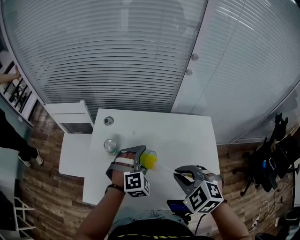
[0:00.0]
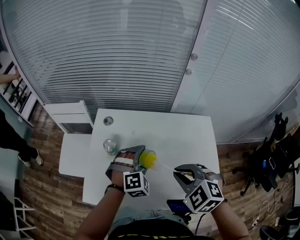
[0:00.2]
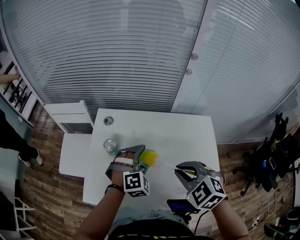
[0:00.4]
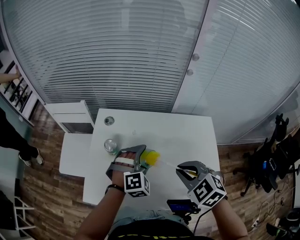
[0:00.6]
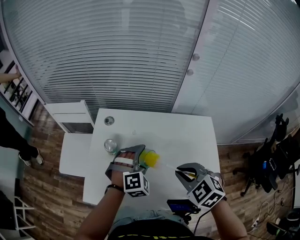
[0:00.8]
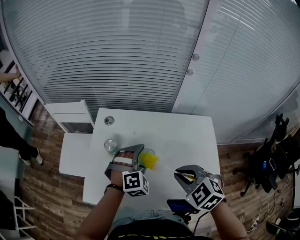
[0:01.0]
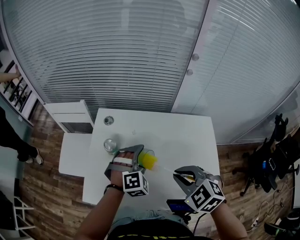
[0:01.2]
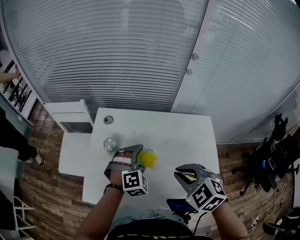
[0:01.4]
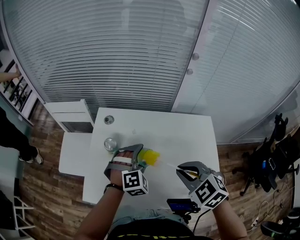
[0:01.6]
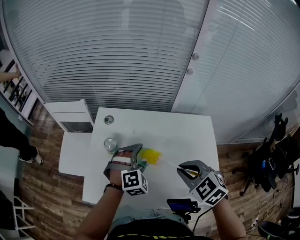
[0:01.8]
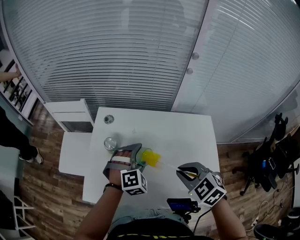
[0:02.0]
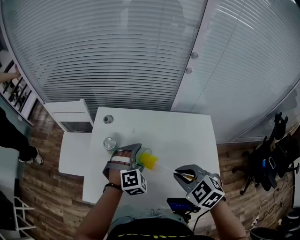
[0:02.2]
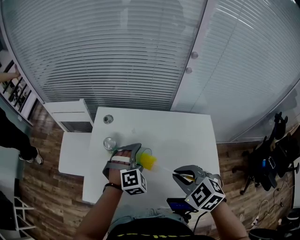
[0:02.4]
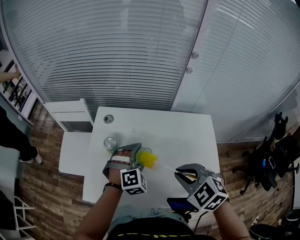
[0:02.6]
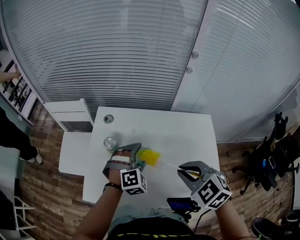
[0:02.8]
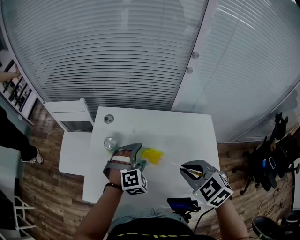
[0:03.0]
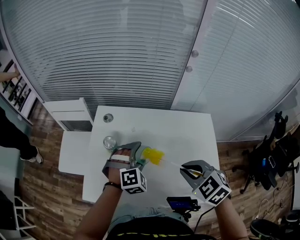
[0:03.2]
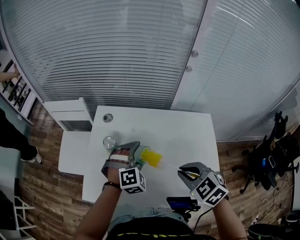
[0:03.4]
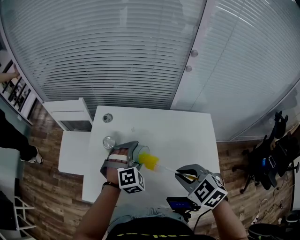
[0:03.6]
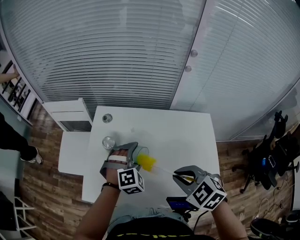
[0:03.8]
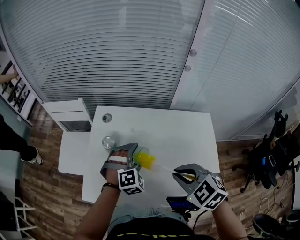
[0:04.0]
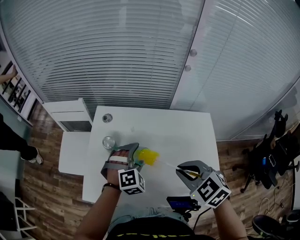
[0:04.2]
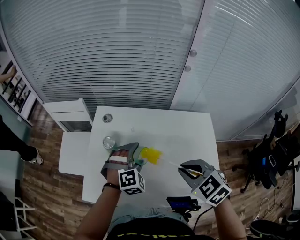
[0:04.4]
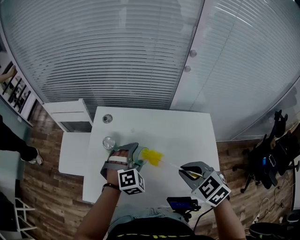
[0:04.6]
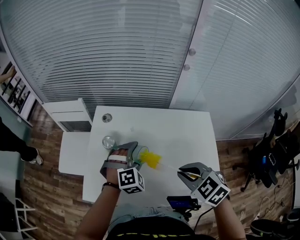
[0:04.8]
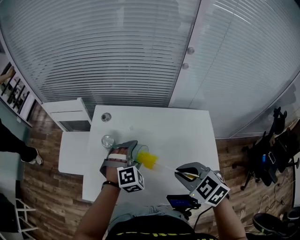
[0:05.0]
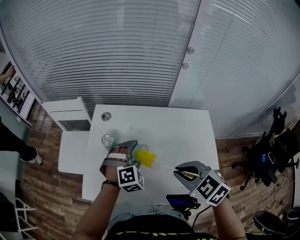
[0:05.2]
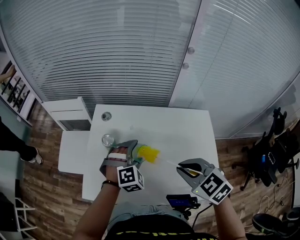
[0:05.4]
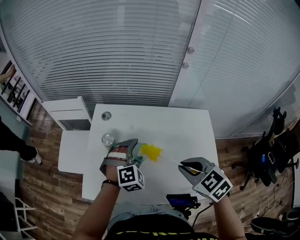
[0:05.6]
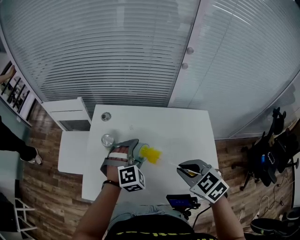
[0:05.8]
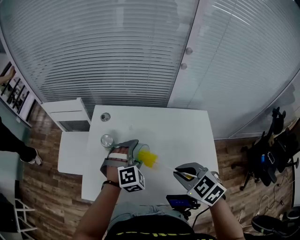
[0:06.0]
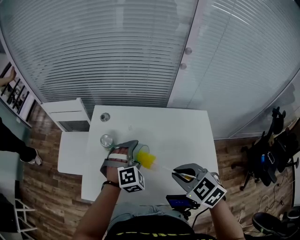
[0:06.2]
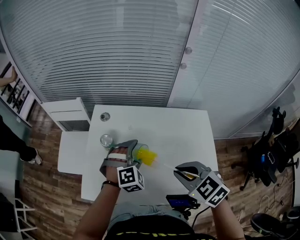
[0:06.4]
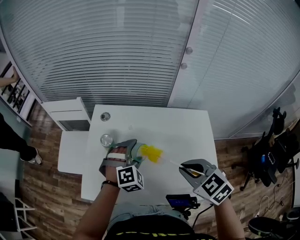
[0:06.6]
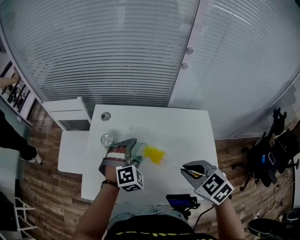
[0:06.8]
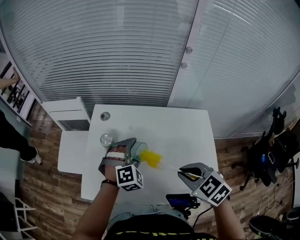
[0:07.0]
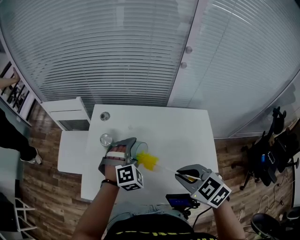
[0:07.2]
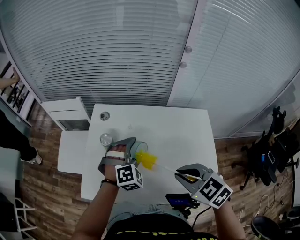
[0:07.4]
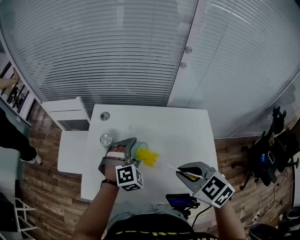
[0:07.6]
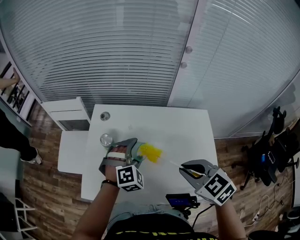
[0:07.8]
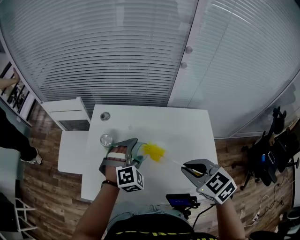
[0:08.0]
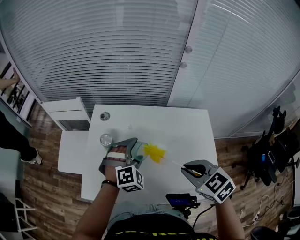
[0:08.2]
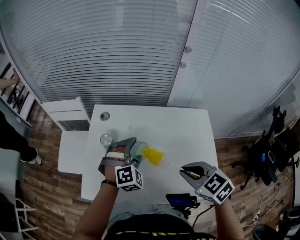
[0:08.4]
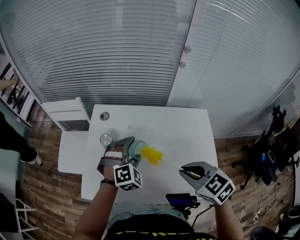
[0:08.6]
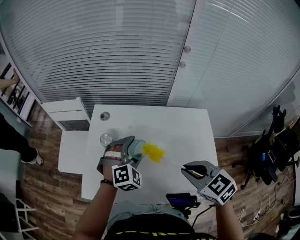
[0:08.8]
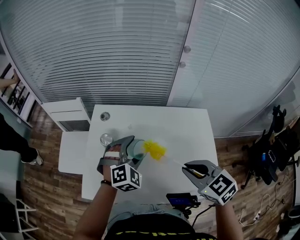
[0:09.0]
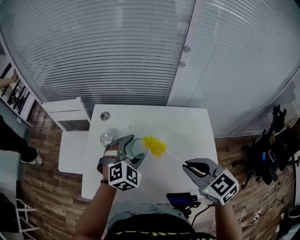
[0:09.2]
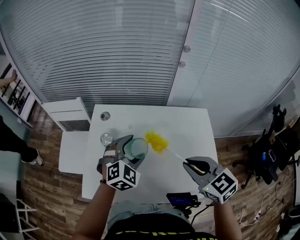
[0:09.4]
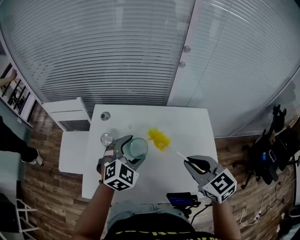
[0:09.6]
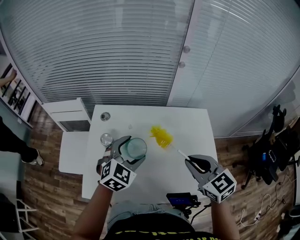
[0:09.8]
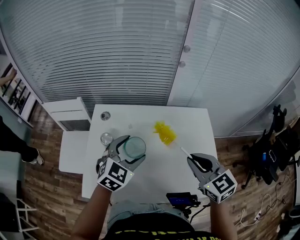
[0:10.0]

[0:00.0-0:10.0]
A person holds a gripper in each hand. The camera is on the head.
0:00.0 to 0:04.2: The grippers stay close to where they were, moving slightly.
0:04.2 to 0:08.6: The grippers stay close to where they were, moving slightly.
0:08.6 to 0:10.0: The left gripper heads upward, covering some 5 cm, and swivels approximately 40 degrees; the right gripper moves about 5 cm, and rotates some 20 degrees.

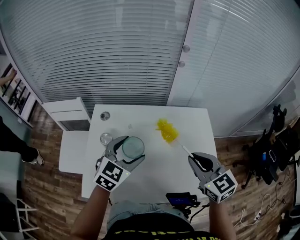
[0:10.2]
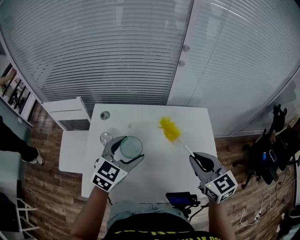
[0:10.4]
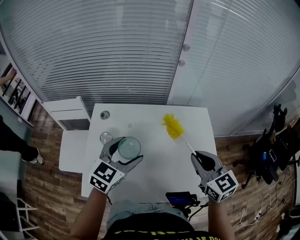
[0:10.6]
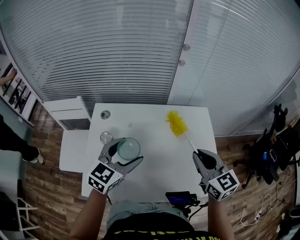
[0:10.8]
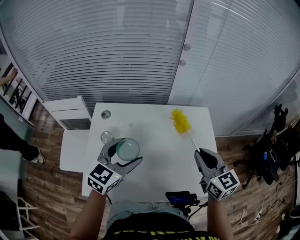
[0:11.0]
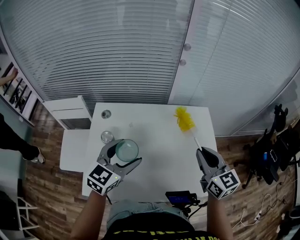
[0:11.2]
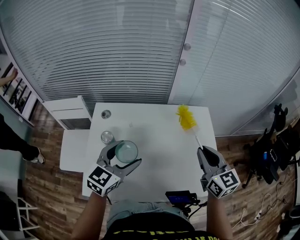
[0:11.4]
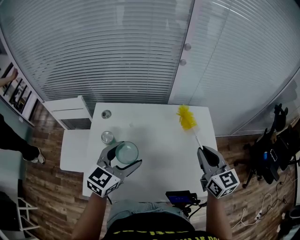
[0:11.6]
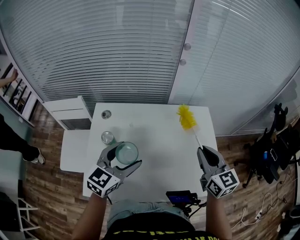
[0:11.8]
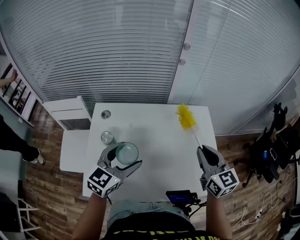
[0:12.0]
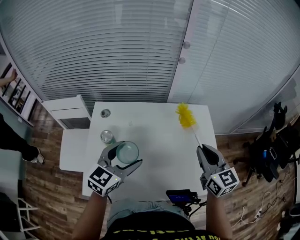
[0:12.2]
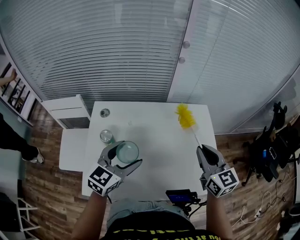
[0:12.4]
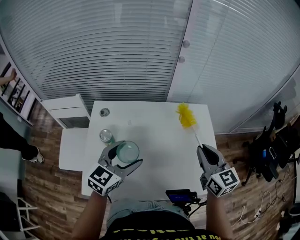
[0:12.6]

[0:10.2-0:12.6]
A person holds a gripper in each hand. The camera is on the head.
0:10.2 to 0:11.4: The grippers move only a little.
0:11.4 to 0:12.6: The two grippers keep their place.

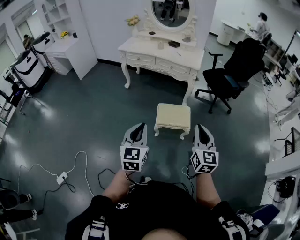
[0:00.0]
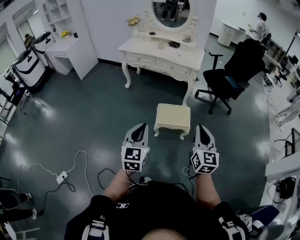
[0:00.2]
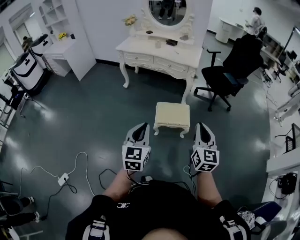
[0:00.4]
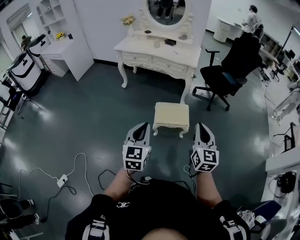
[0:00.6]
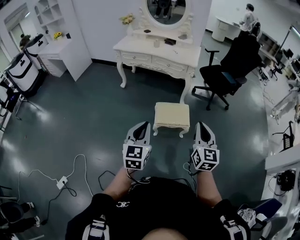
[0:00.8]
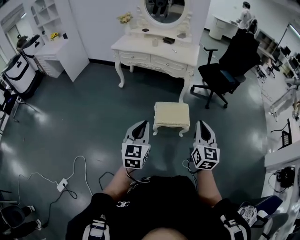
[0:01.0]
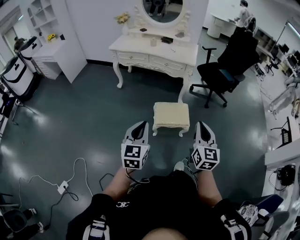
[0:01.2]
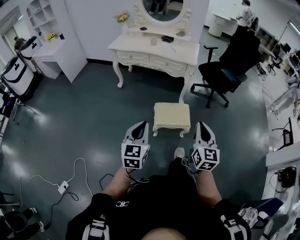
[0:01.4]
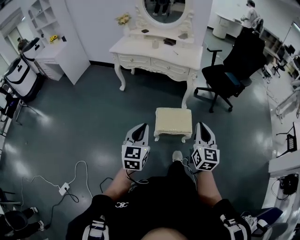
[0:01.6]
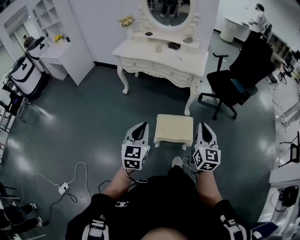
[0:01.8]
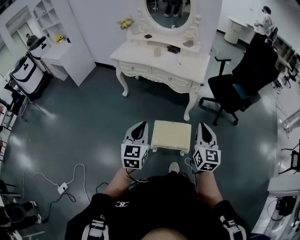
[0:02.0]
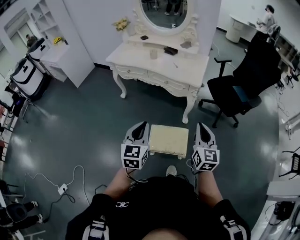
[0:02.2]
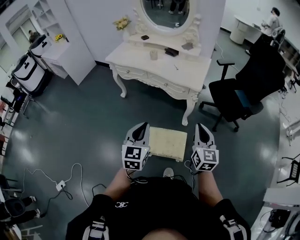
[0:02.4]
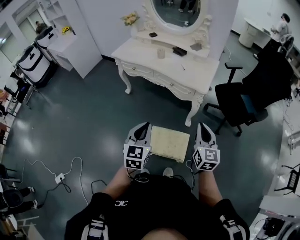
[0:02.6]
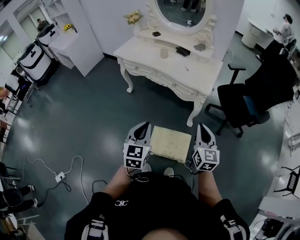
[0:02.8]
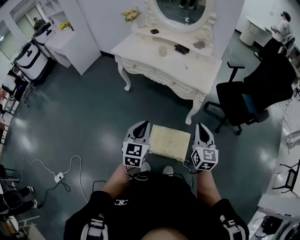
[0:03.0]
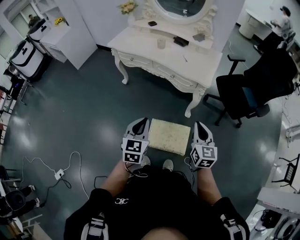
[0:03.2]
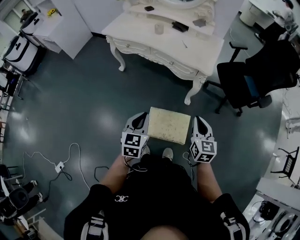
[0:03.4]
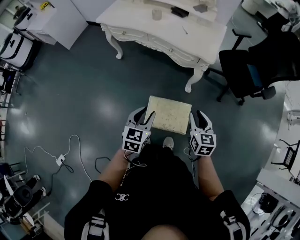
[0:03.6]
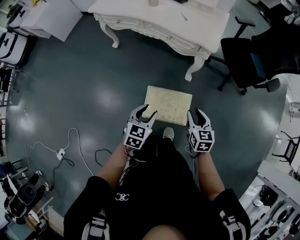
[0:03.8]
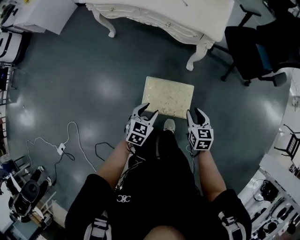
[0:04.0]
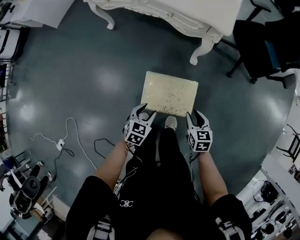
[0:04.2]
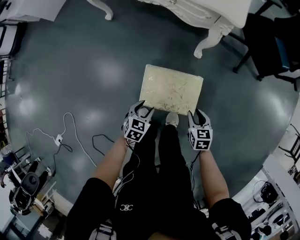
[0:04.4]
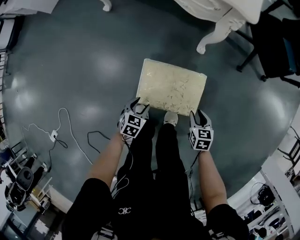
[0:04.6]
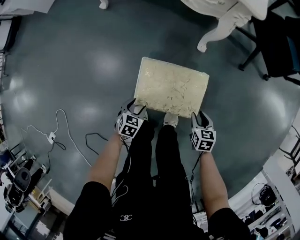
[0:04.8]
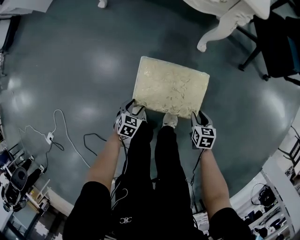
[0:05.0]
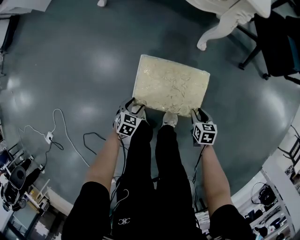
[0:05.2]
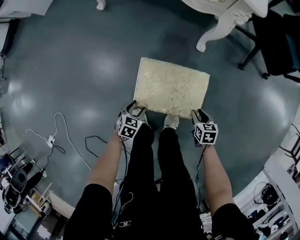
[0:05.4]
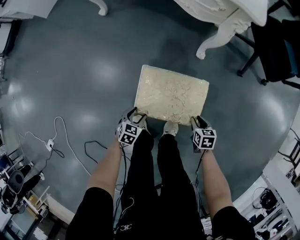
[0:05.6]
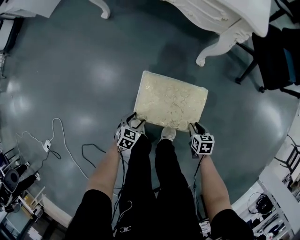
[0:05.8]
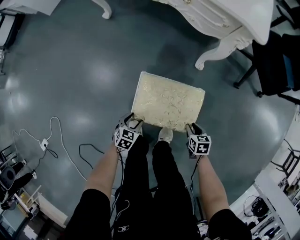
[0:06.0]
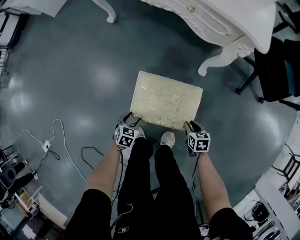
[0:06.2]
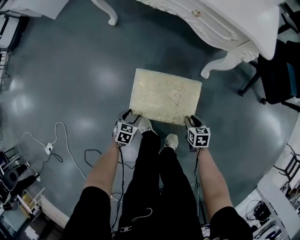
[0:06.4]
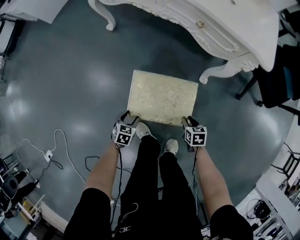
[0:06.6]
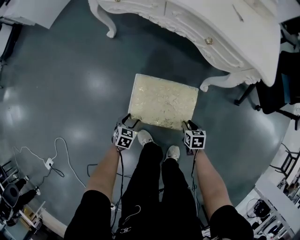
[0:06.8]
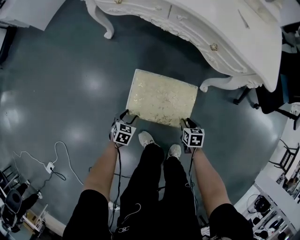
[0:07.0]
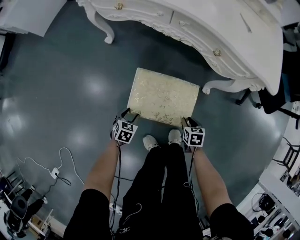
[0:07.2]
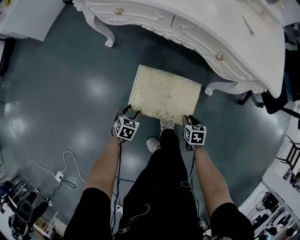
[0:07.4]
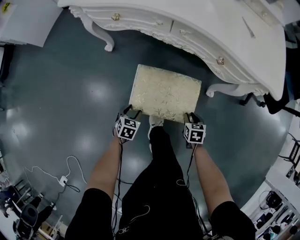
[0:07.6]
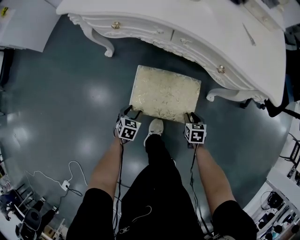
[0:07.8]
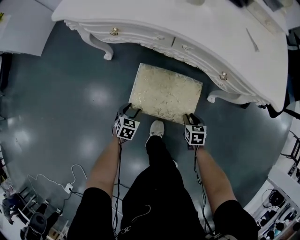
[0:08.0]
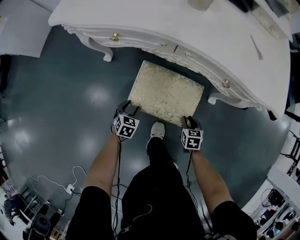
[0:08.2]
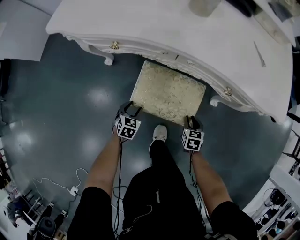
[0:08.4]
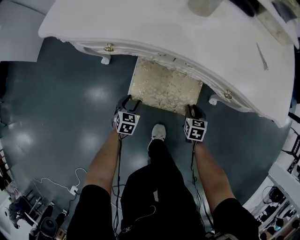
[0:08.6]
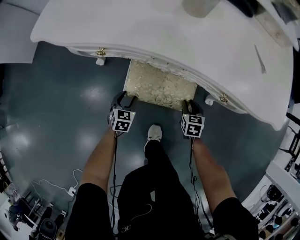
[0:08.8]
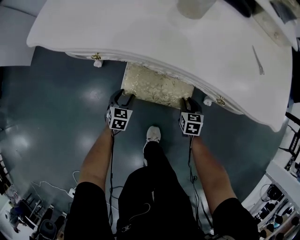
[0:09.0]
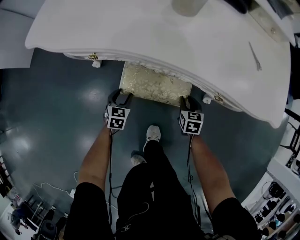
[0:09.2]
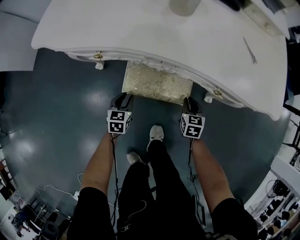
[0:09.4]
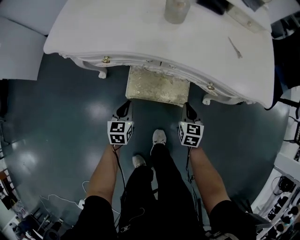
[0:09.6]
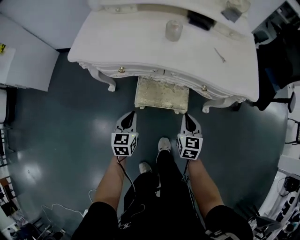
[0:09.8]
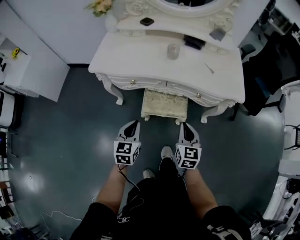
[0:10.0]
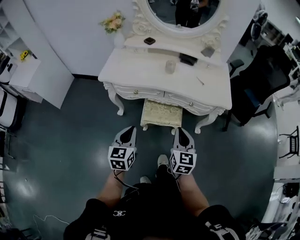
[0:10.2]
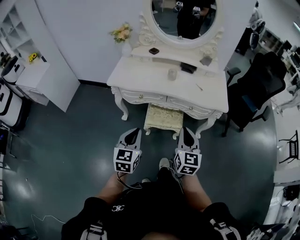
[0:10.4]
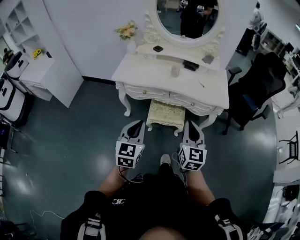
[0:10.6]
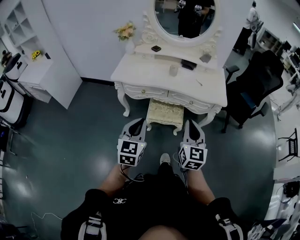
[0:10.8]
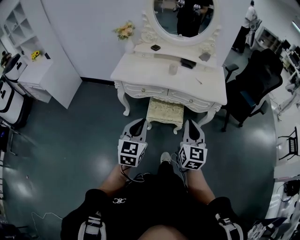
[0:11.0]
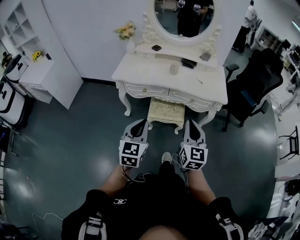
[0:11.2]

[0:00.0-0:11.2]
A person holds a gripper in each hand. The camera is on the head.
0:00.0 to 0:01.6: The grippers both shift forward by approximately 15 cm.
0:01.6 to 0:03.2: Both grippers move forward, about 35 cm.
0:03.2 to 0:04.8: The grippers both shift downward by approximately 60 cm. The left gripper tips its fingers downward by some 40 degrees, and opens. Meanwhile the right gripper points its fingers some 40 degrees further downward, and opens.
0:04.8 to 0:06.4: The two grippers go about 15 cm forward and to the left.
0:06.4 to 0:08.0: Both grippers move forward and to the left, about 35 cm.
0:08.0 to 0:09.6: The two grippers go about 20 cm upward and forward. The left gripper turns by some 20 degrees, and closes its fingers. Meanwhile the right gripper changes its angle by approximately 30 degrees, and closes up.
0:09.6 to 0:11.2: Both grippers move upward and backward, about 70 cm. The left gripper turns by approximately 30 degrees. The right gripper points its fingers approximately 30 degrees further upward.
